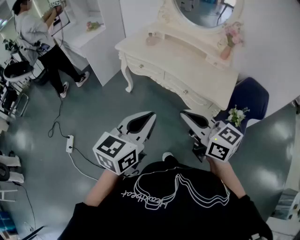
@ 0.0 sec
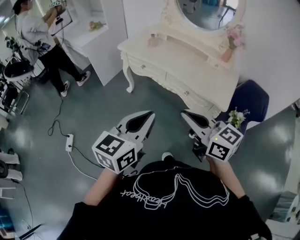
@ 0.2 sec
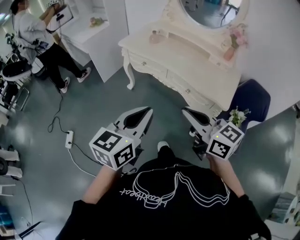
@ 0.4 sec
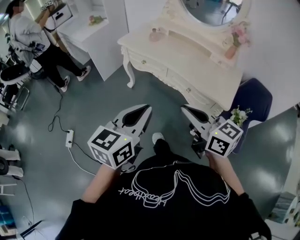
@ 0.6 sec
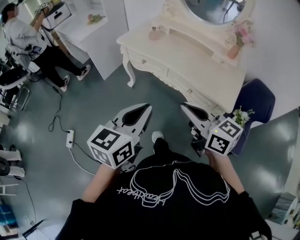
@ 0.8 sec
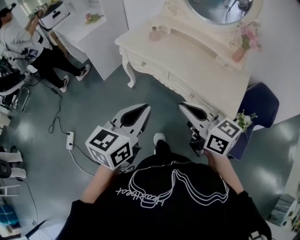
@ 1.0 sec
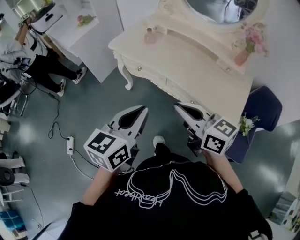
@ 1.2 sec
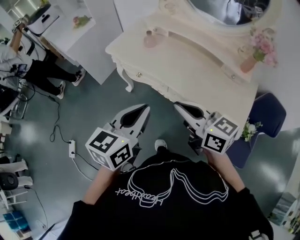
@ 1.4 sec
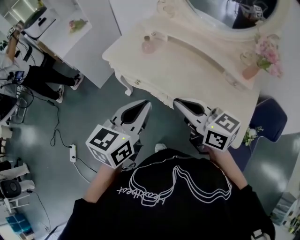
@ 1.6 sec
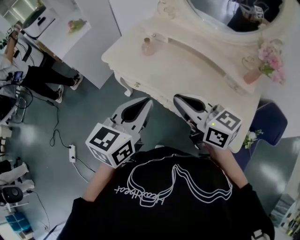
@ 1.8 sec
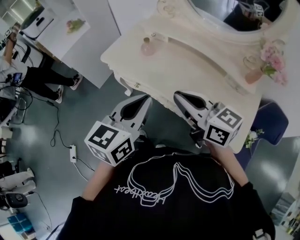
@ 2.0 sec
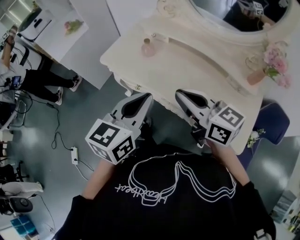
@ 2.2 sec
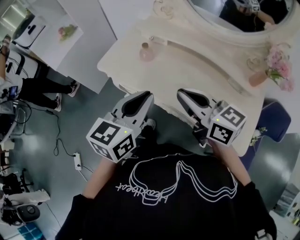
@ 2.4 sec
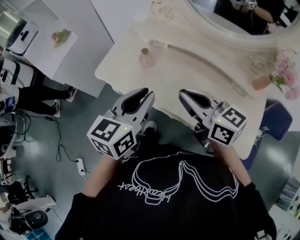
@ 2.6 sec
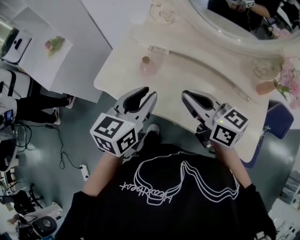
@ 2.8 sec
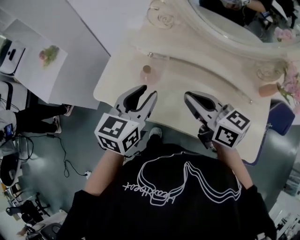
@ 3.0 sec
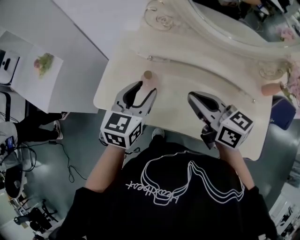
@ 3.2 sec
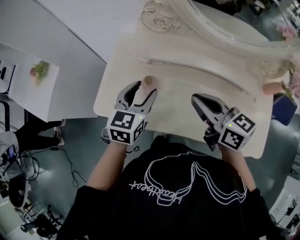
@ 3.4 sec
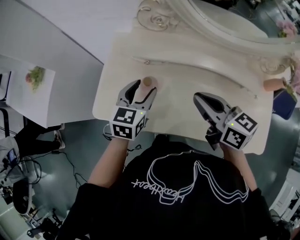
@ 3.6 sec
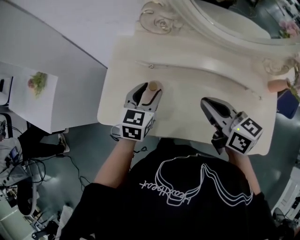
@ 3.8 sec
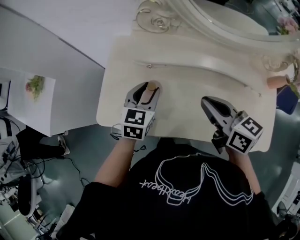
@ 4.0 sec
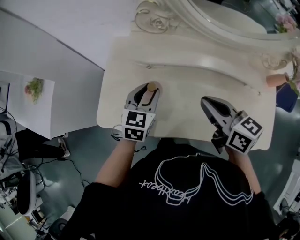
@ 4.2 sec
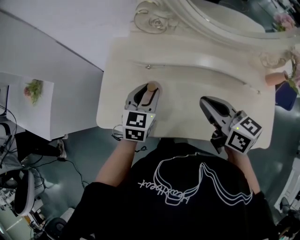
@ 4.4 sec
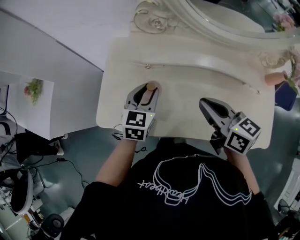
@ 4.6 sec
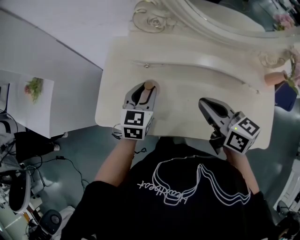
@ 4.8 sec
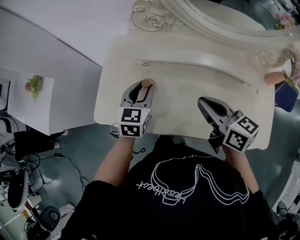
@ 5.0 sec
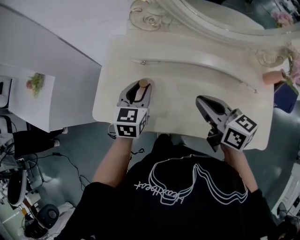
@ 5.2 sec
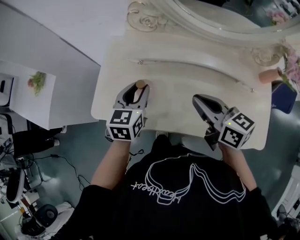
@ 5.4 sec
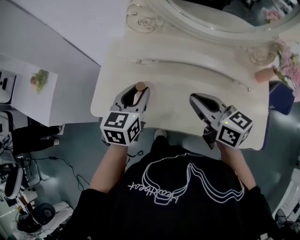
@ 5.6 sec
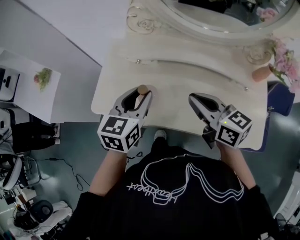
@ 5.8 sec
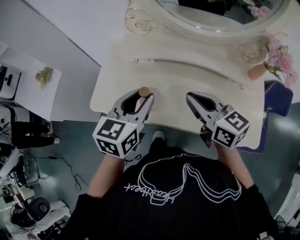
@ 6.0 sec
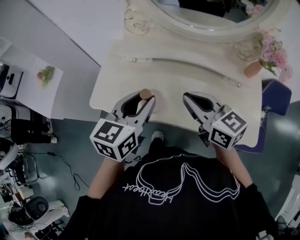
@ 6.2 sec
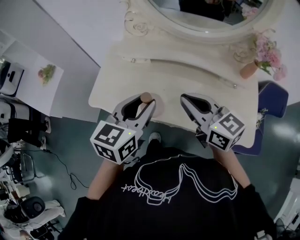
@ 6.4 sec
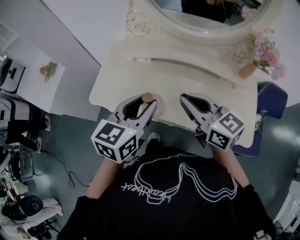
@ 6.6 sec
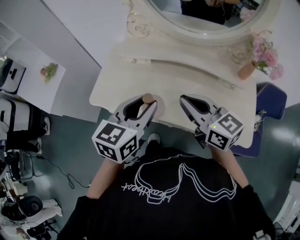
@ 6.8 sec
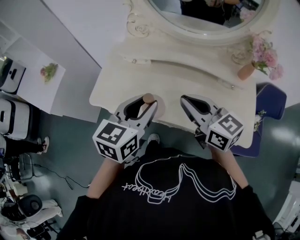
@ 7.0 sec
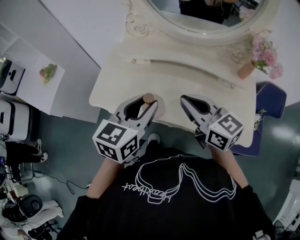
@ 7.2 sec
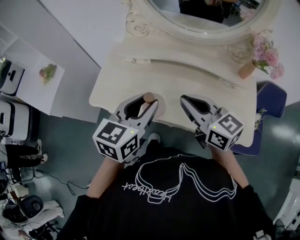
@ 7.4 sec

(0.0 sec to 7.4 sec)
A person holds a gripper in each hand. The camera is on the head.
0.0 sec - 1.4 sec: The two grippers go about 25 cm forward.
1.4 sec - 3.0 sec: The grippers both shift forward by about 35 cm. The left gripper opens up.
3.0 sec - 4.4 sec: The left gripper moves downward and forward, roughly 15 cm, and opens, then closes again. The right gripper shifts by about 5 cm.
4.4 sec - 6.0 sec: The right gripper heads backward, covering roughly 5 cm. Meanwhile the left gripper moves upward, backward and to the right, approximately 20 cm.
6.0 sec - 7.4 sec: The two grippers go roughly 5 cm backward.

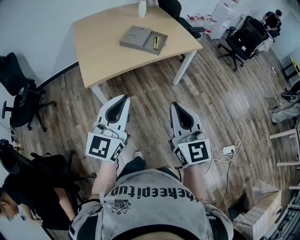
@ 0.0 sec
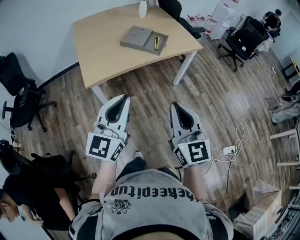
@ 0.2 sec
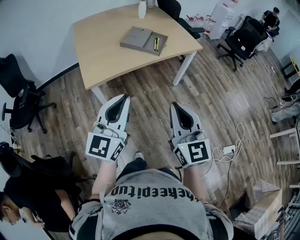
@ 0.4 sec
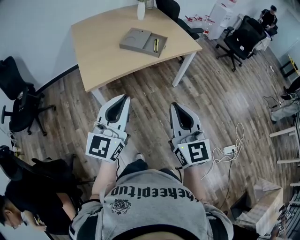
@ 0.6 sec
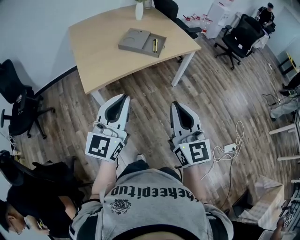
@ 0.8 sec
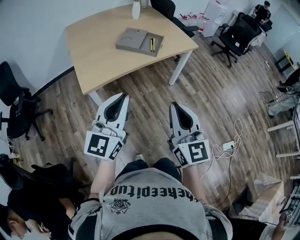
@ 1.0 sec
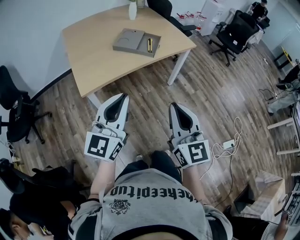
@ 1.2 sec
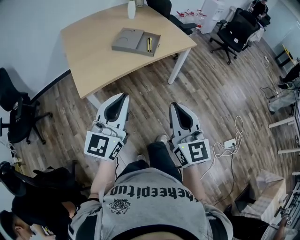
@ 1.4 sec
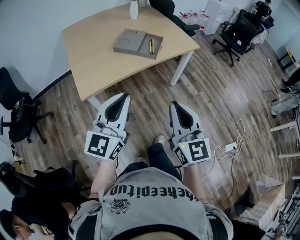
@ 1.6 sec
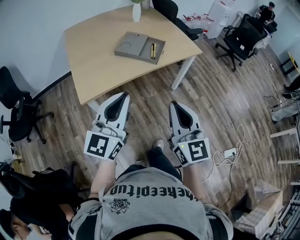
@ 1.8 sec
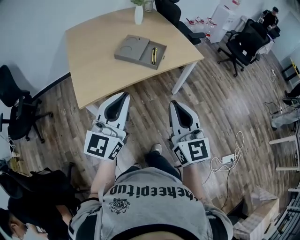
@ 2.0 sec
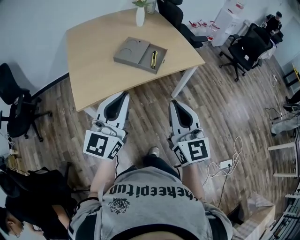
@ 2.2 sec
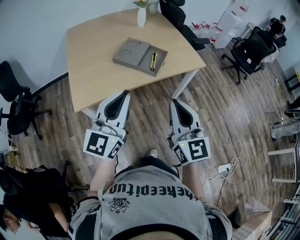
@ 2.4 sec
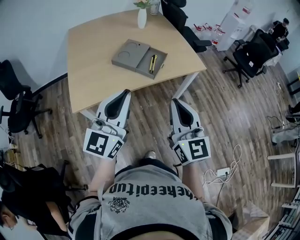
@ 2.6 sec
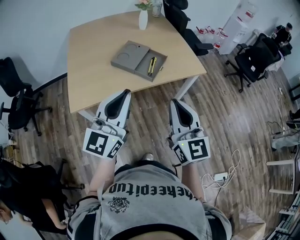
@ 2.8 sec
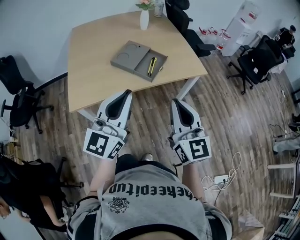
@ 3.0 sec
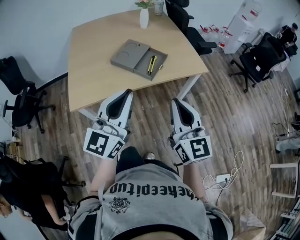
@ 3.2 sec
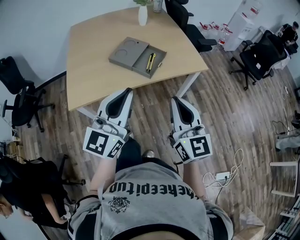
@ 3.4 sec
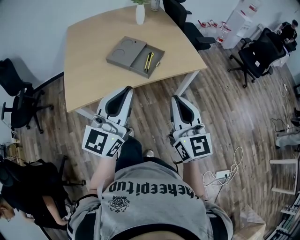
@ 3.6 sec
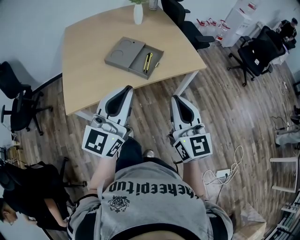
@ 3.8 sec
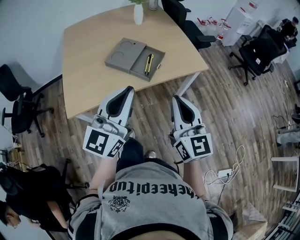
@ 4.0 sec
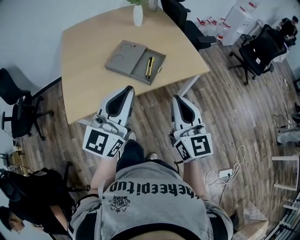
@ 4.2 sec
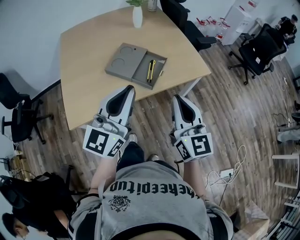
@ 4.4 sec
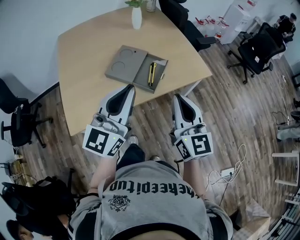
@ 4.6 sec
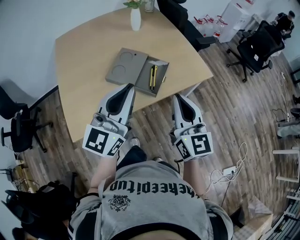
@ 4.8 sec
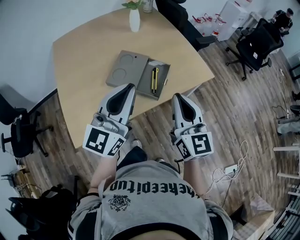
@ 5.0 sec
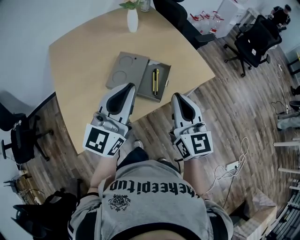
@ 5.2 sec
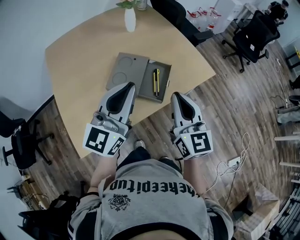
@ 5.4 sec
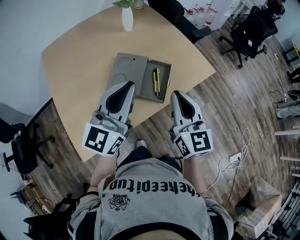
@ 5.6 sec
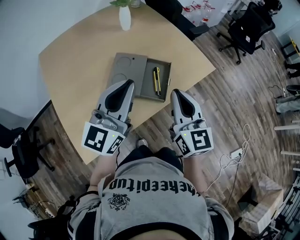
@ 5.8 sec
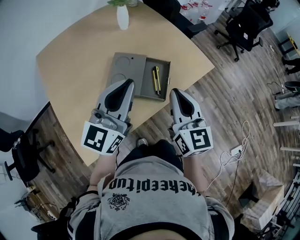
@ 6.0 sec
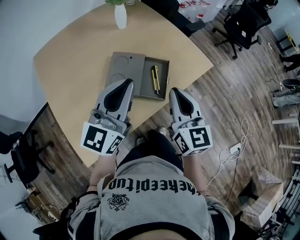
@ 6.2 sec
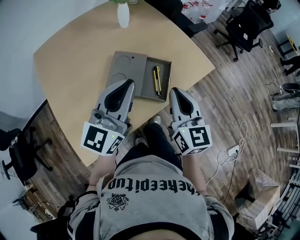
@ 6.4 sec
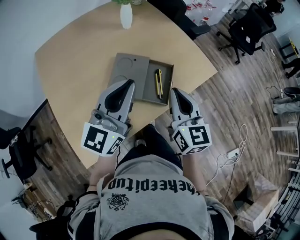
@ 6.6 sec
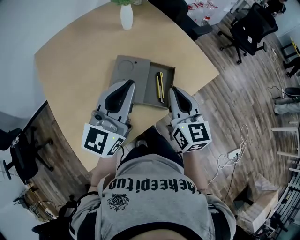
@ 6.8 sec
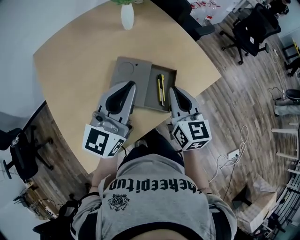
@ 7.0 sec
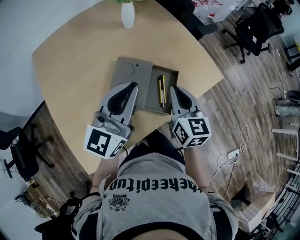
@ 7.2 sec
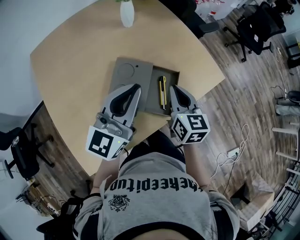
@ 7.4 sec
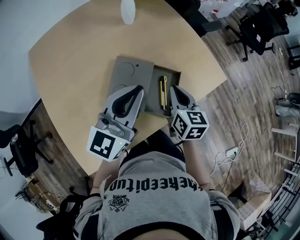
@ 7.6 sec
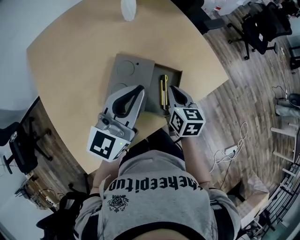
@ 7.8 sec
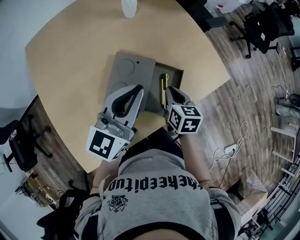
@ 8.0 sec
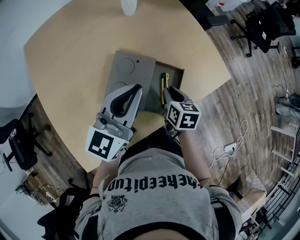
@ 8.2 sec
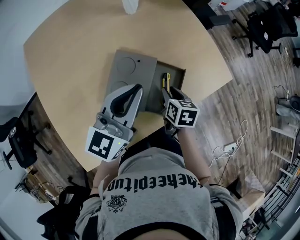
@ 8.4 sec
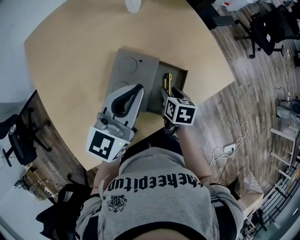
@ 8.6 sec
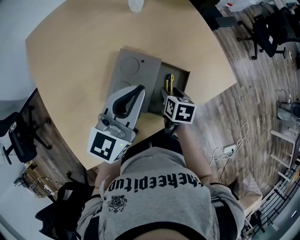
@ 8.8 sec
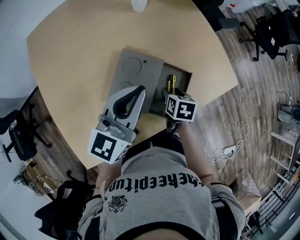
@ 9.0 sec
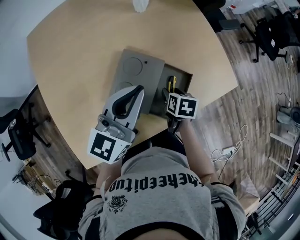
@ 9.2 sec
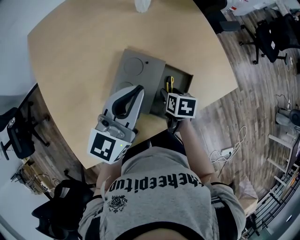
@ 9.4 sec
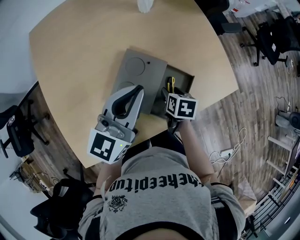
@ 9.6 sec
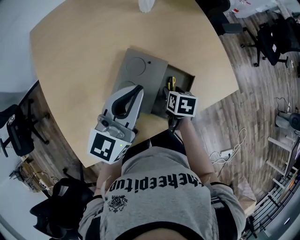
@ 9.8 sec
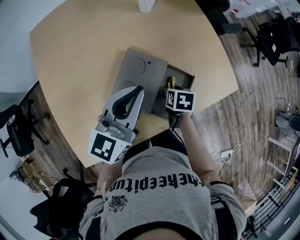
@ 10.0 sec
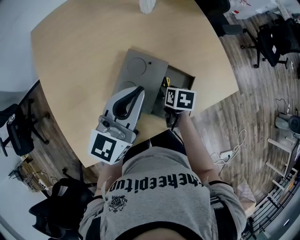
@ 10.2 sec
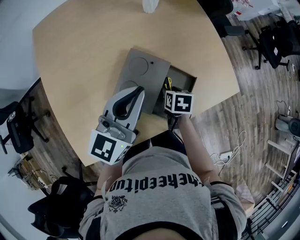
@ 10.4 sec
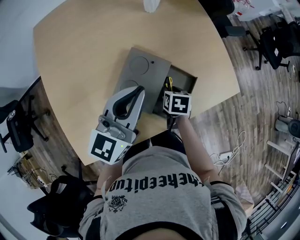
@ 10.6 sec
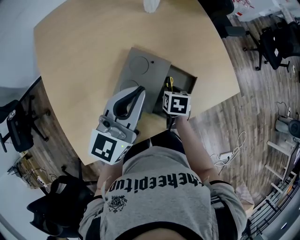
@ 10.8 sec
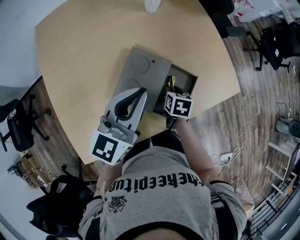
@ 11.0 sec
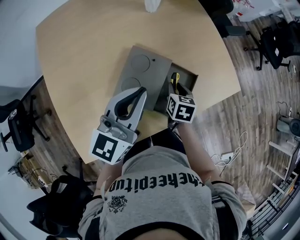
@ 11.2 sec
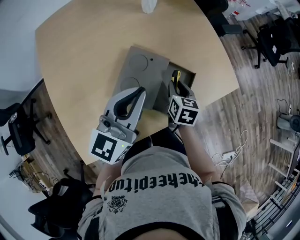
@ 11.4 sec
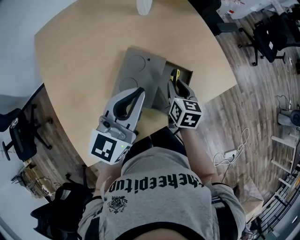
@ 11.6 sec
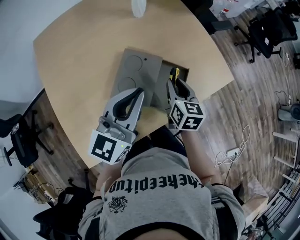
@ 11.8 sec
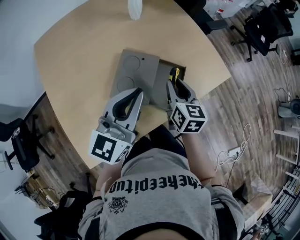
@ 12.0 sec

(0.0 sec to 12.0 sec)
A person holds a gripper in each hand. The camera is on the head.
0.0 sec - 1.6 sec: Both grippers travel together forward, some 5 cm.
1.6 sec - 3.0 sec: The two grippers go approximately 20 cm forward and to the right.
3.0 sec - 4.4 sec: The grippers both shift forward by roughly 10 cm.
4.4 sec - 6.0 sec: The grippers both shift forward and to the left by roughly 15 cm.
6.0 sec - 7.6 sec: The left gripper goes about 10 cm forward, while the right gripper heads forward and downward, covering approximately 20 cm, and swivels some 30 degrees.
7.6 sec - 9.0 sec: The left gripper moves about 5 cm. Meanwhile the right gripper shifts some 15 cm downward, tilts its fingers approximately 30 degrees downward, and opens its fingers.
9.0 sec - 10.4 sec: The grippers make only small movements.
10.4 sec - 12.0 sec: The right gripper travels upward by approximately 15 cm, and tilts its fingers roughly 40 degrees upward. The left gripper shifts some 5 cm backward.

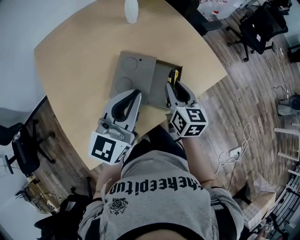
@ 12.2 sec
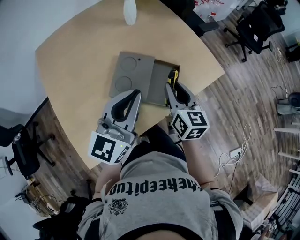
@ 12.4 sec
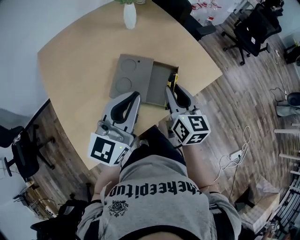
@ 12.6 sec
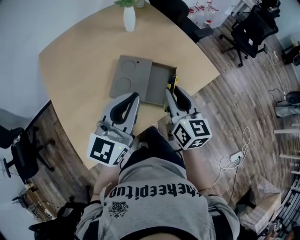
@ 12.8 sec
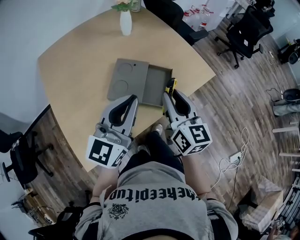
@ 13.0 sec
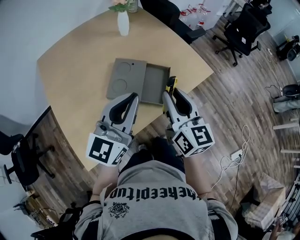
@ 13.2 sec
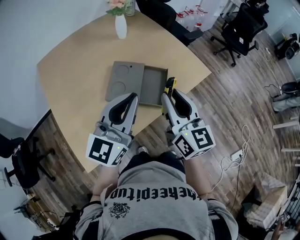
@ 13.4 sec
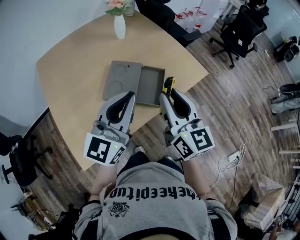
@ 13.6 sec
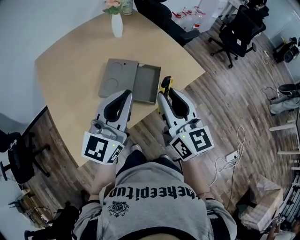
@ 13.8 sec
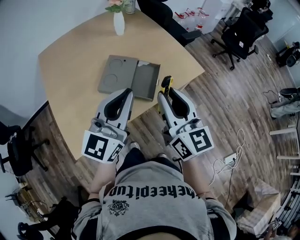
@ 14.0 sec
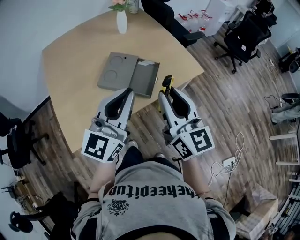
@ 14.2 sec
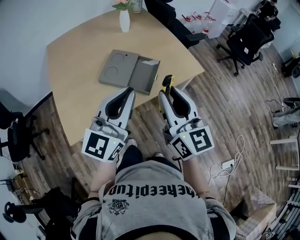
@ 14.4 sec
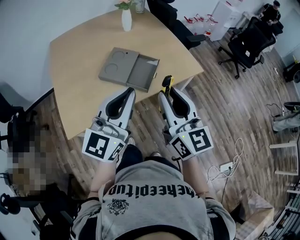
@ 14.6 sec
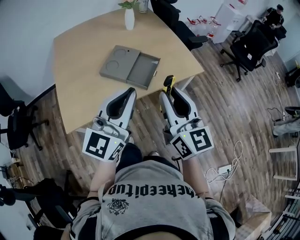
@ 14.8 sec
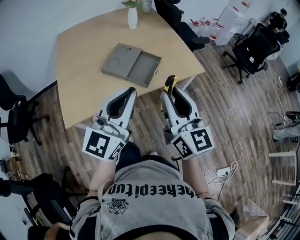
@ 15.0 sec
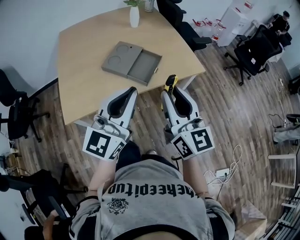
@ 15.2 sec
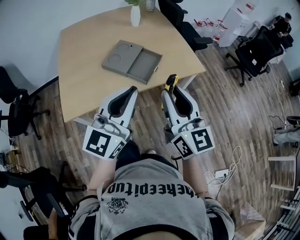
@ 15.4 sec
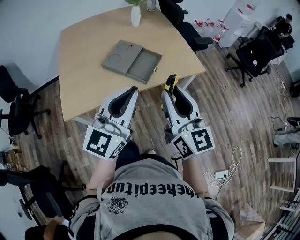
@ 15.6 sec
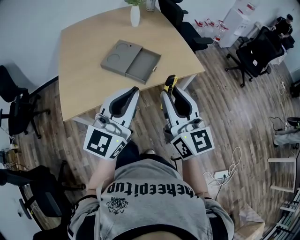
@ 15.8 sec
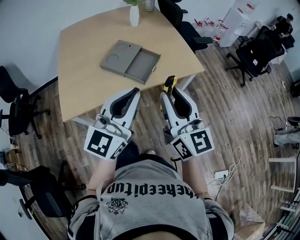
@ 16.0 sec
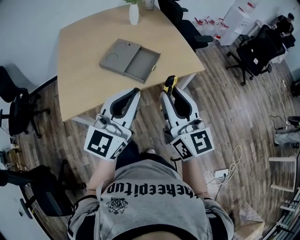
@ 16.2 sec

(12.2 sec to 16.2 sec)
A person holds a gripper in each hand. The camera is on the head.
12.2 sec - 13.6 sec: The right gripper travels upward and backward by about 20 cm, and rotates some 20 degrees; the left gripper heads backward and upward, covering roughly 10 cm.
13.6 sec - 14.8 sec: The two grippers go roughly 15 cm backward and to the right.
14.8 sec - 16.2 sec: The left gripper goes some 5 cm to the right.
